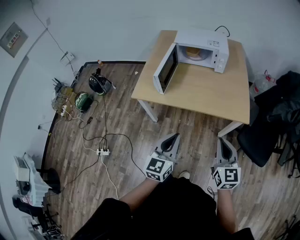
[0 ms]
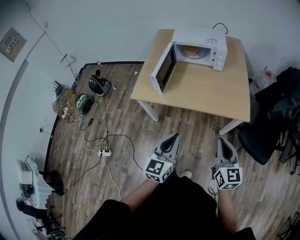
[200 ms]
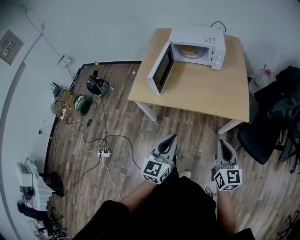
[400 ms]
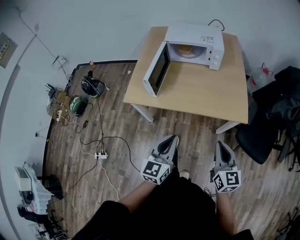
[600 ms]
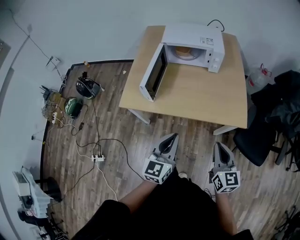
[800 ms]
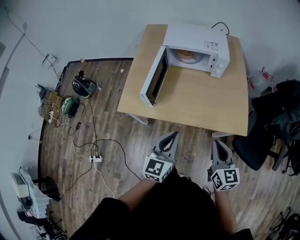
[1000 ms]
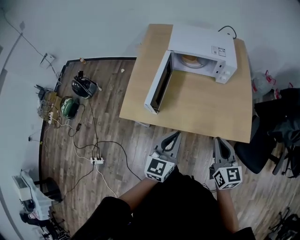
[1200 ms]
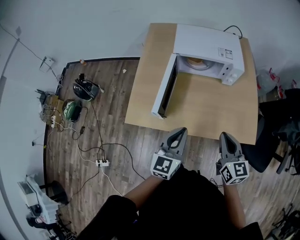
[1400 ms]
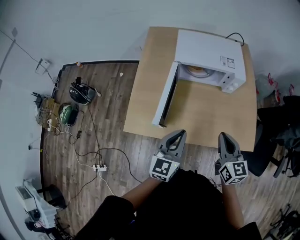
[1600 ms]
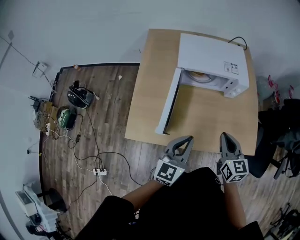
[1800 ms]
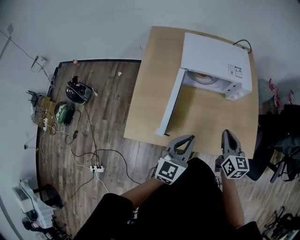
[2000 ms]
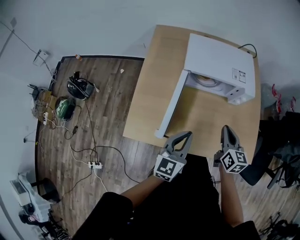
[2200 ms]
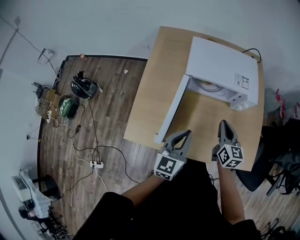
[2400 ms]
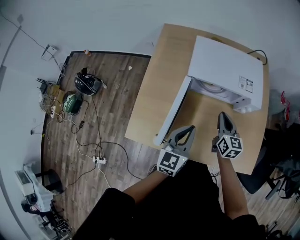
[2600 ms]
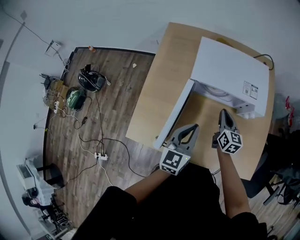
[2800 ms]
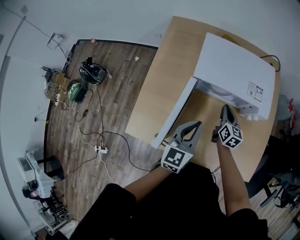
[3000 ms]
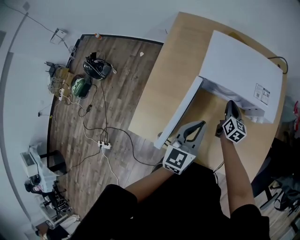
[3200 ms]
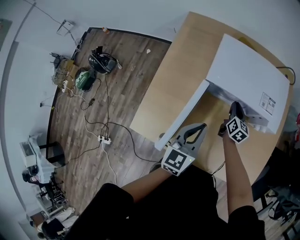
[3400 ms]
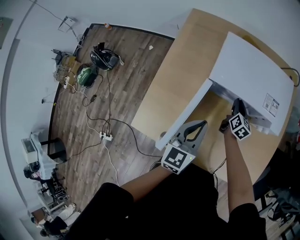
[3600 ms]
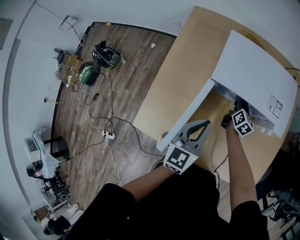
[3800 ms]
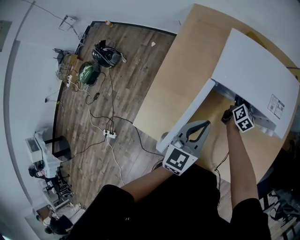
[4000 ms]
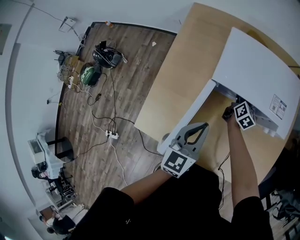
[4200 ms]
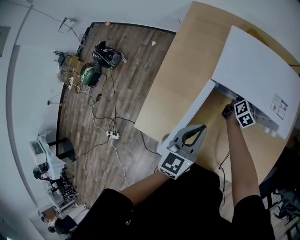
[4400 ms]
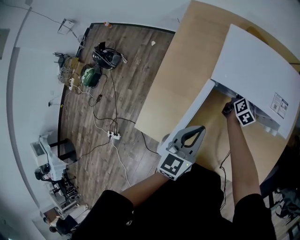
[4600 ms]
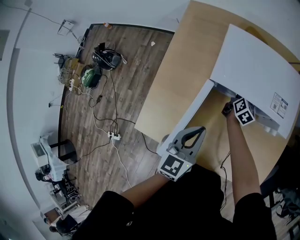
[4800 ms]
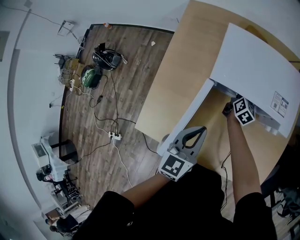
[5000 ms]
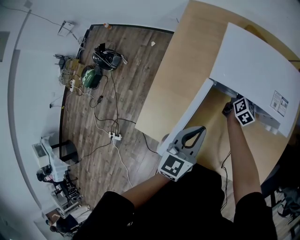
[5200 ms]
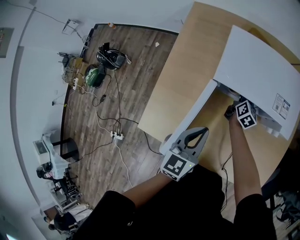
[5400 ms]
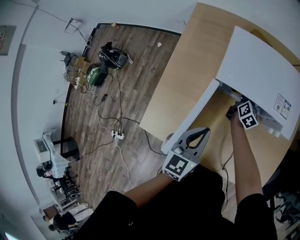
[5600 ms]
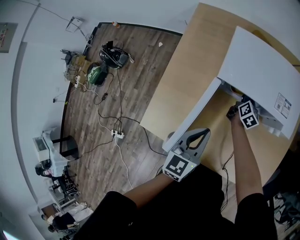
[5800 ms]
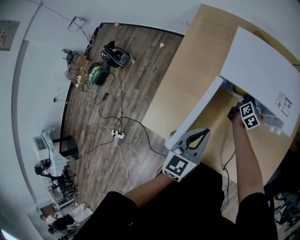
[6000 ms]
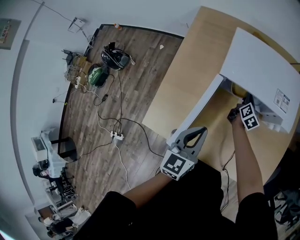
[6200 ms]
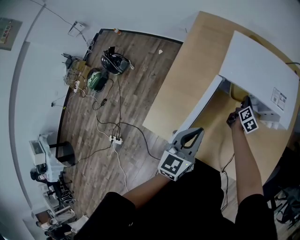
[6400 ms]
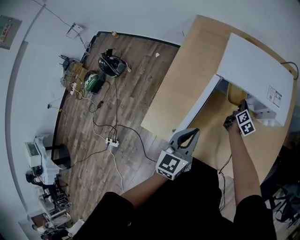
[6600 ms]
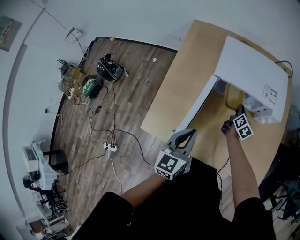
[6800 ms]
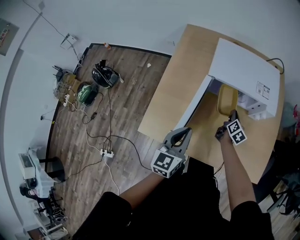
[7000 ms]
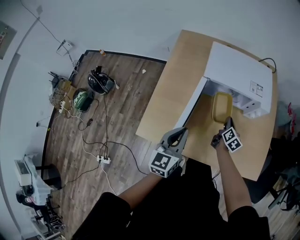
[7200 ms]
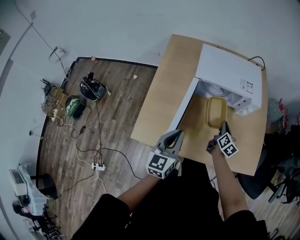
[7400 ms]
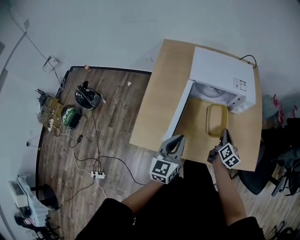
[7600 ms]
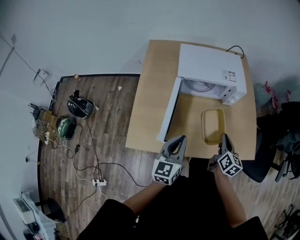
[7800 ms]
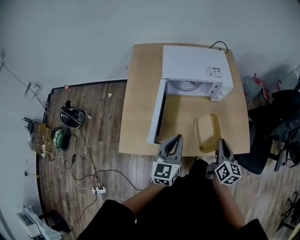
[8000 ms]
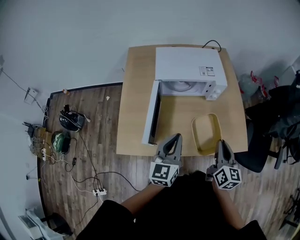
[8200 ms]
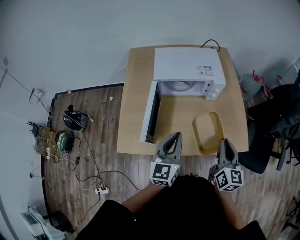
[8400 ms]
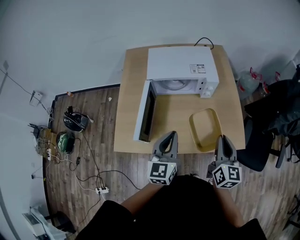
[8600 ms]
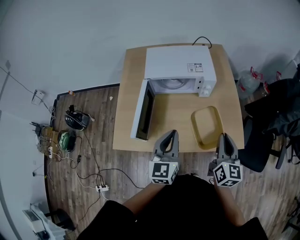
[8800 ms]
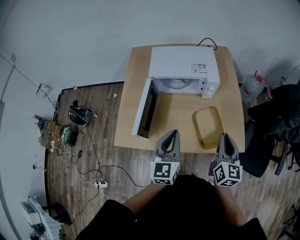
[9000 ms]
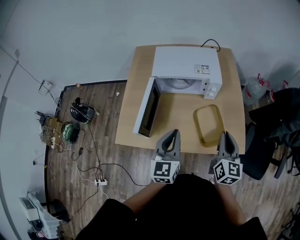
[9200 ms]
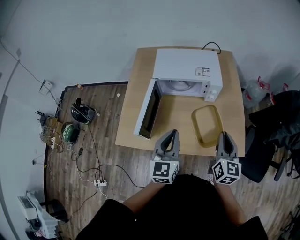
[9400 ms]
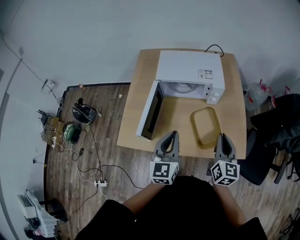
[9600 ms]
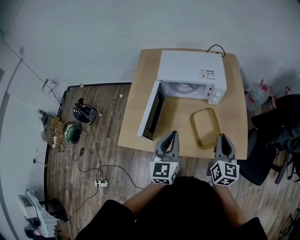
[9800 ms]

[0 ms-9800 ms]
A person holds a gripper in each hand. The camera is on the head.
0 ms to 1400 ms: The grippers both shift forward by roughly 30 cm.
1400 ms to 2800 ms: The left gripper heads forward, covering about 20 cm; the right gripper shifts approximately 35 cm forward and downward.
2800 ms to 4200 ms: The left gripper changes place by approximately 5 cm; the right gripper moves forward and downward, roughly 20 cm, changes its angle by approximately 20 degrees, and opens its fingers.
4200 ms to 5600 ms: The right gripper closes.
5600 ms to 7000 ms: Both grippers move backward, approximately 15 cm.
7000 ms to 8400 ms: The right gripper shifts roughly 40 cm backward, upward and to the right, and swivels approximately 30 degrees, while the left gripper goes approximately 15 cm to the right and upward.

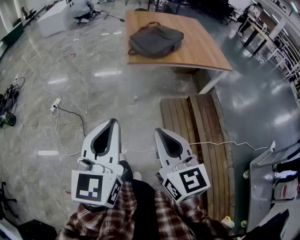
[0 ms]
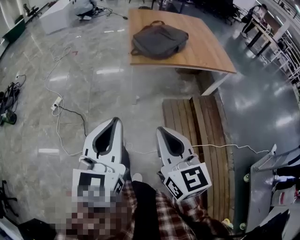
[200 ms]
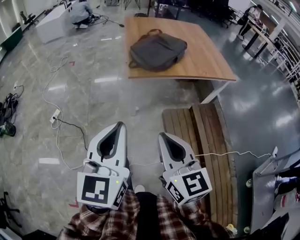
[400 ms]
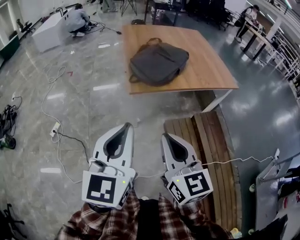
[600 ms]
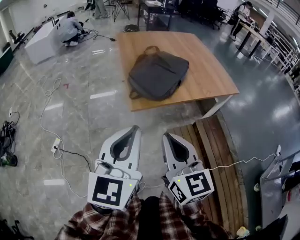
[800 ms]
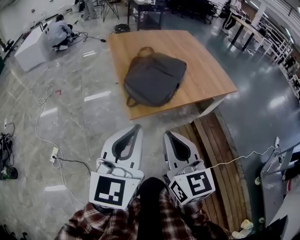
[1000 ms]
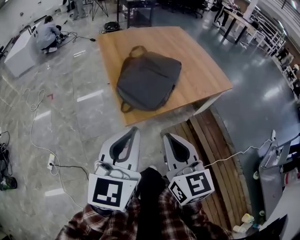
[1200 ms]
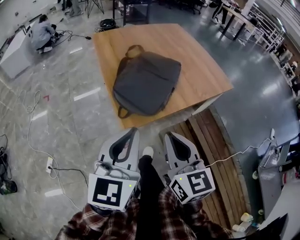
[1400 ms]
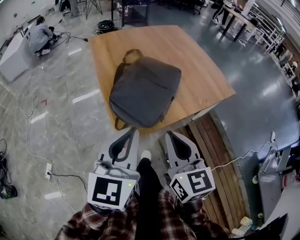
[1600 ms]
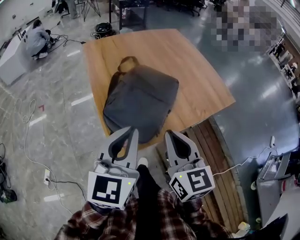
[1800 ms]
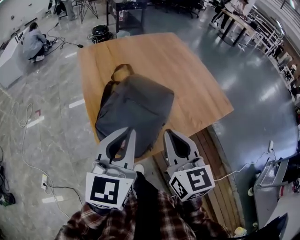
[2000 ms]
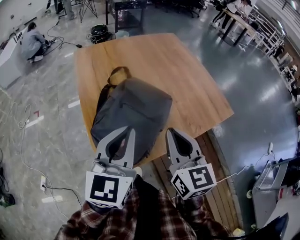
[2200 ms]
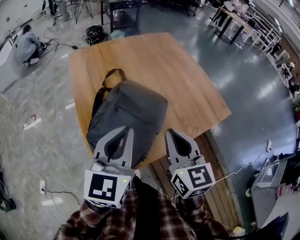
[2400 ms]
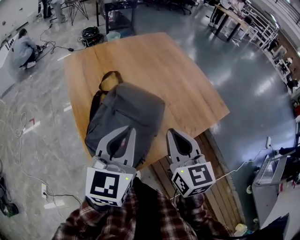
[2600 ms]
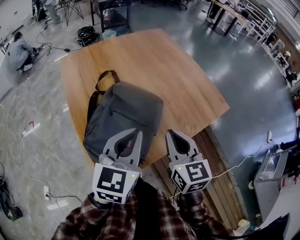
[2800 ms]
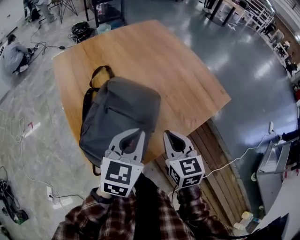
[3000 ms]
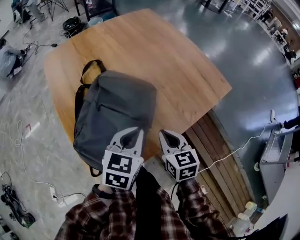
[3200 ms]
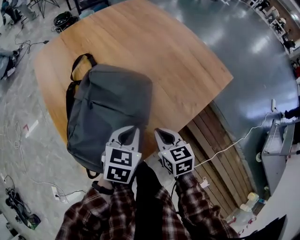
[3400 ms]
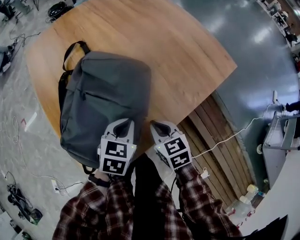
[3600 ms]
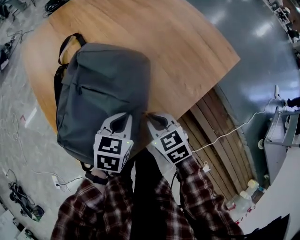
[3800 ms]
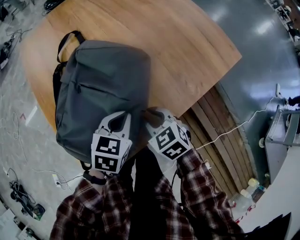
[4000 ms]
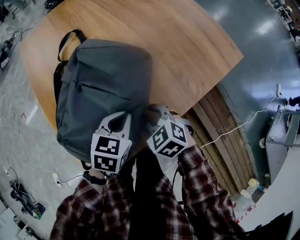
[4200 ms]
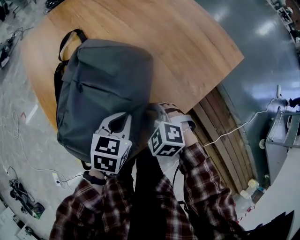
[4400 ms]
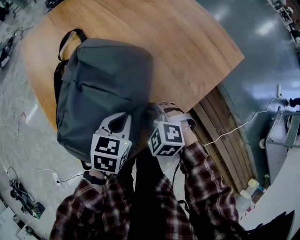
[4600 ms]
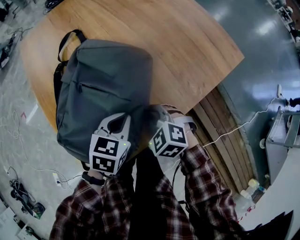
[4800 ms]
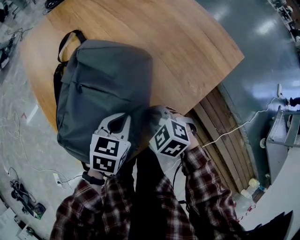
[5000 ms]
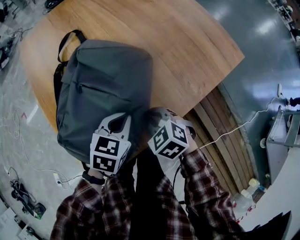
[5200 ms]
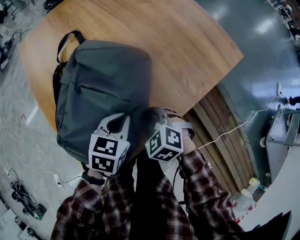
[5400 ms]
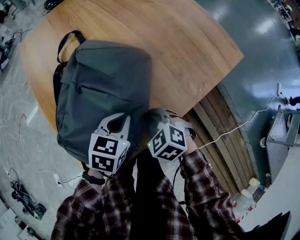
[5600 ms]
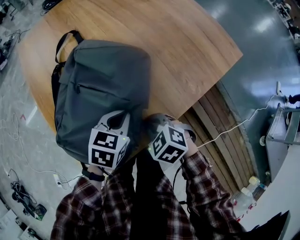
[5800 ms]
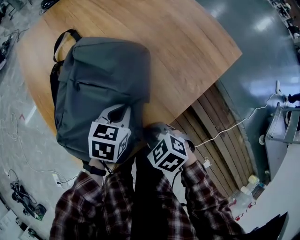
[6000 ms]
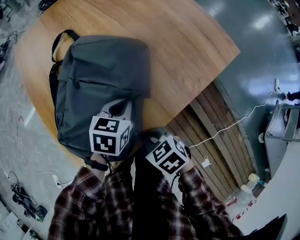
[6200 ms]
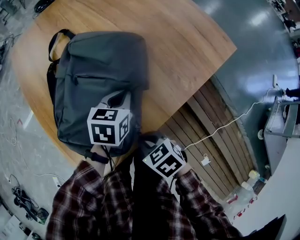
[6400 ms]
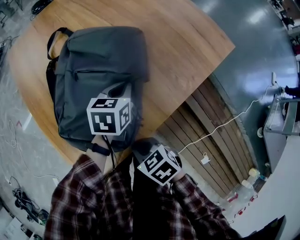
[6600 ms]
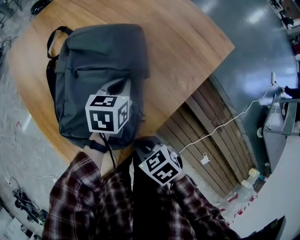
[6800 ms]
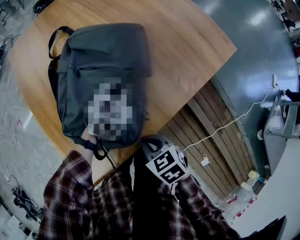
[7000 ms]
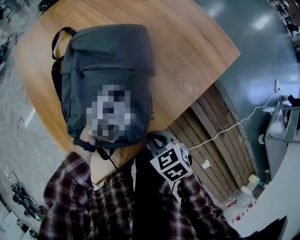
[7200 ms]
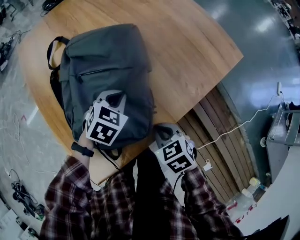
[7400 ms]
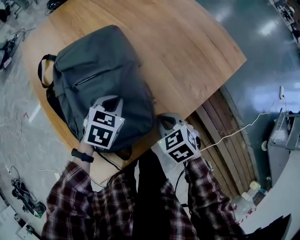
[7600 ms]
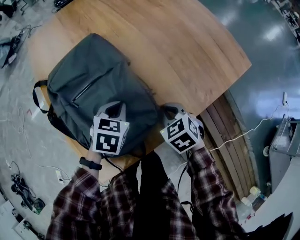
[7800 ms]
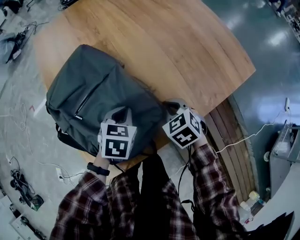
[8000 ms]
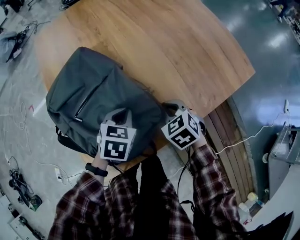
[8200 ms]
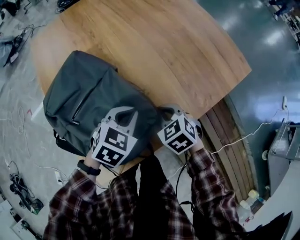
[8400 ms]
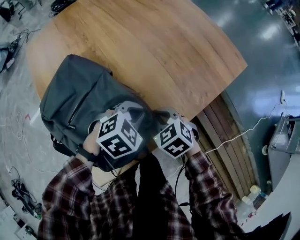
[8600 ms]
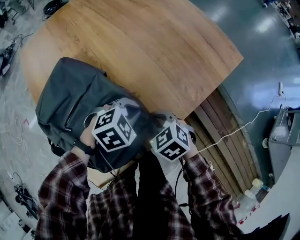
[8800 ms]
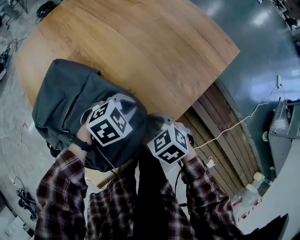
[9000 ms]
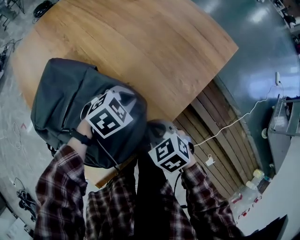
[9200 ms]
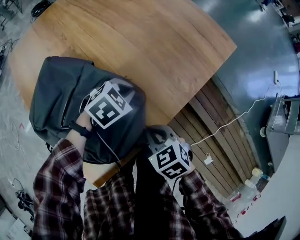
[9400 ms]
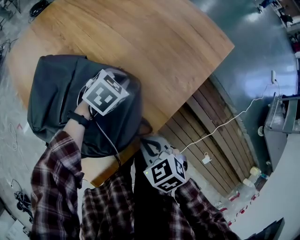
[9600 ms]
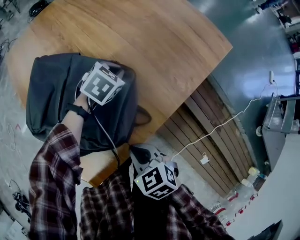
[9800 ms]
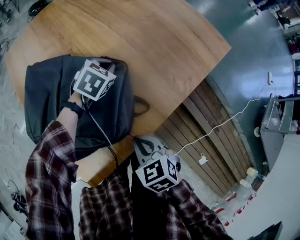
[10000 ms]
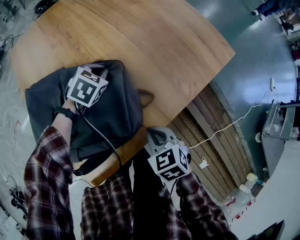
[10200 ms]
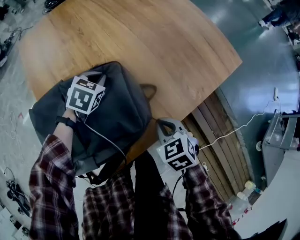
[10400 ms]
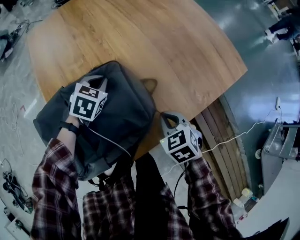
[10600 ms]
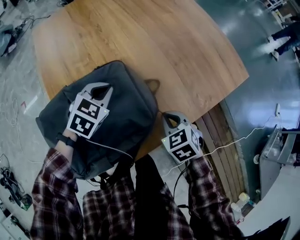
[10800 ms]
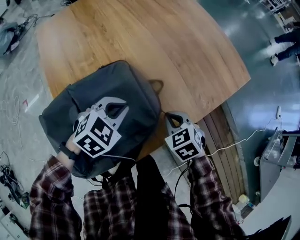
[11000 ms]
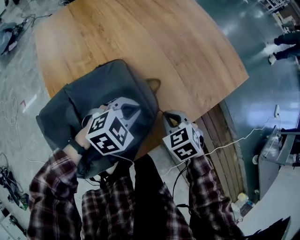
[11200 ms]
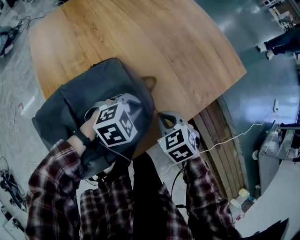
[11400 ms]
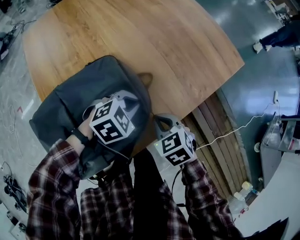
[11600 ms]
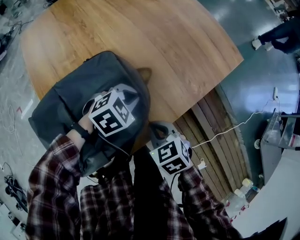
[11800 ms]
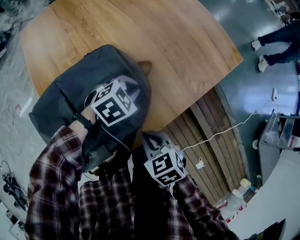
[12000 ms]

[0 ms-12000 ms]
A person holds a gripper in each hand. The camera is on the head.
0 ms to 1600 ms: Both grippers are carried forward, some 50 cm. The left gripper changes its angle by approximately 30 degrees. Meanwhile the right gripper changes its angle by roughly 20 degrees.
1600 ms to 3000 ms: The grippers both shift forward and to the right by roughly 30 cm. The left gripper turns by some 20 degrees.
3000 ms to 4400 ms: Both grippers travel together downward, some 20 cm. The right gripper angles its fingers downward, by approximately 30 degrees, while the left gripper rotates roughly 20 degrees.
4400 ms to 6000 ms: The right gripper goes about 5 cm backward, and changes its angle by some 30 degrees.
6000 ms to 7600 ms: The left gripper reaches some 5 cm to the right, then returns, while the right gripper heads forward and to the right, covering some 10 cm.
7600 ms to 9000 ms: The left gripper goes about 10 cm to the right, and swivels approximately 40 degrees.
9000 ms to 10400 ms: The right gripper moves approximately 10 cm backward and comes back. Meanwhile the left gripper moves to the left and forward, about 20 cm, and turns by roughly 40 degrees.
10400 ms to 12000 ms: The left gripper shifts approximately 15 cm to the right and backward, and changes its angle by about 30 degrees. Meanwhile the right gripper travels backward and to the left by roughly 10 cm.

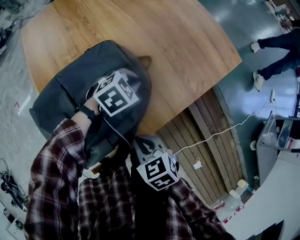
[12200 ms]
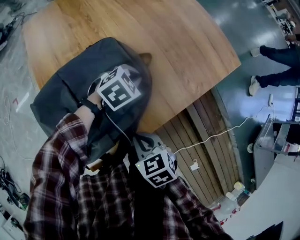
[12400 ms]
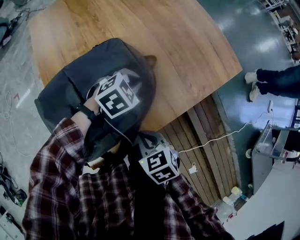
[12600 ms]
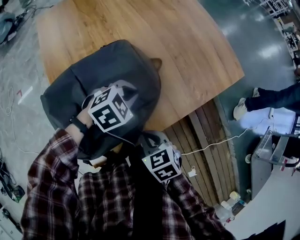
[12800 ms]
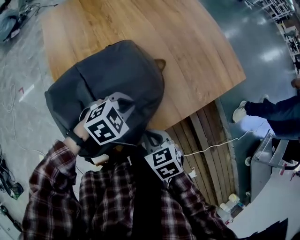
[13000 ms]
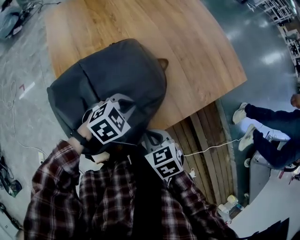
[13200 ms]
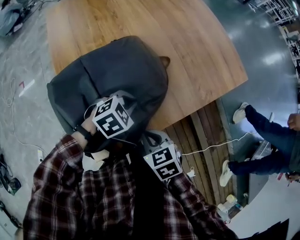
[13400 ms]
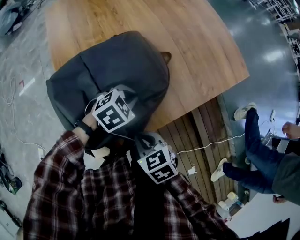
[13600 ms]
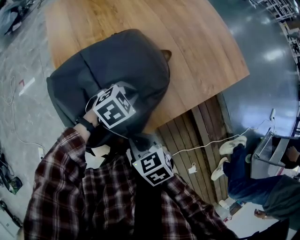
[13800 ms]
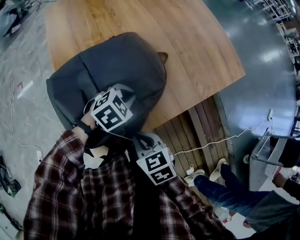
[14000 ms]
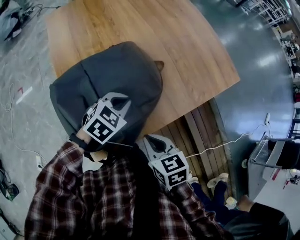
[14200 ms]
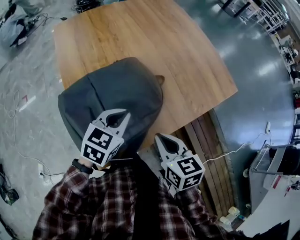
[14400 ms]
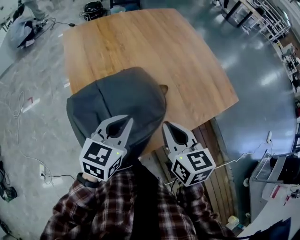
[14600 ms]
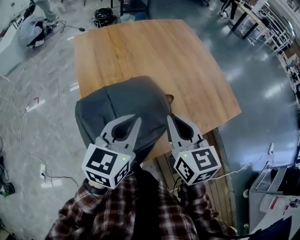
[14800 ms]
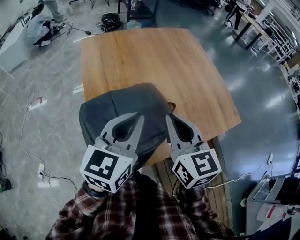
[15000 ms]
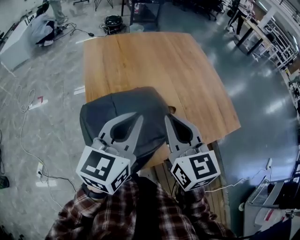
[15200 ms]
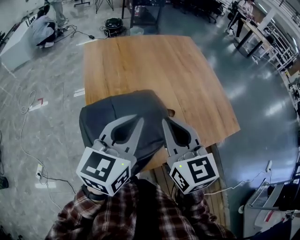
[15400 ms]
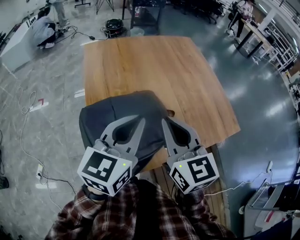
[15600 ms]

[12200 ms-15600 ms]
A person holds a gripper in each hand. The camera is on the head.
12200 ms to 13800 ms: The right gripper goes roughly 5 cm backward, while the left gripper shifts roughly 10 cm backward and to the left.
13800 ms to 15600 ms: The left gripper is displaced upward by roughly 30 cm, and angles its fingers upward, by roughly 50 degrees; the right gripper goes approximately 35 cm upward and forward, and tilts its fingers about 40 degrees upward.
